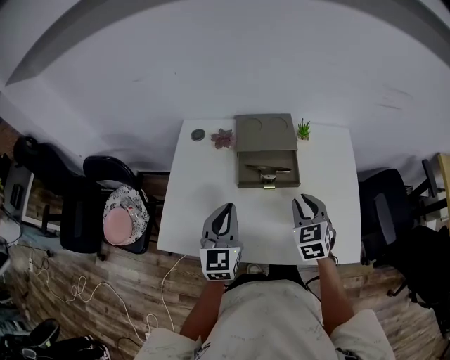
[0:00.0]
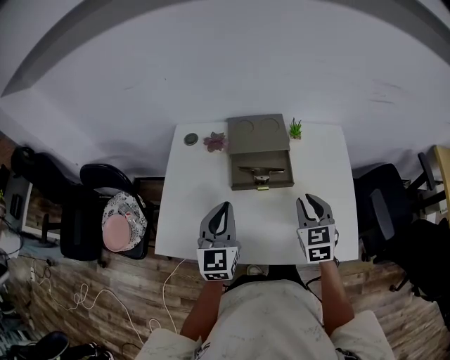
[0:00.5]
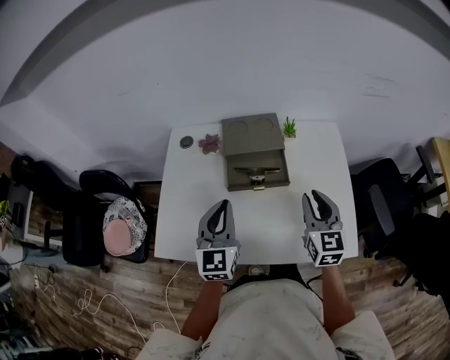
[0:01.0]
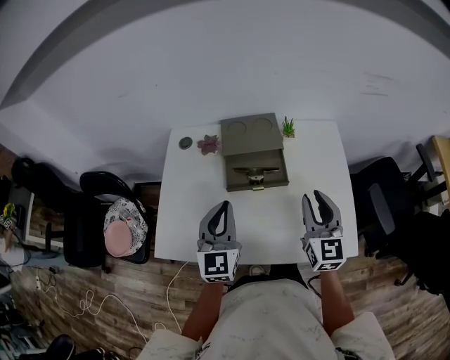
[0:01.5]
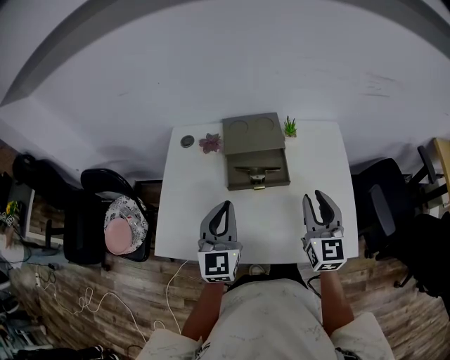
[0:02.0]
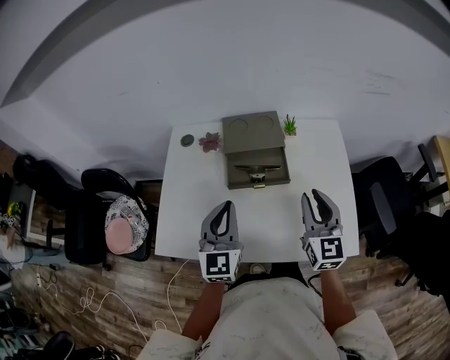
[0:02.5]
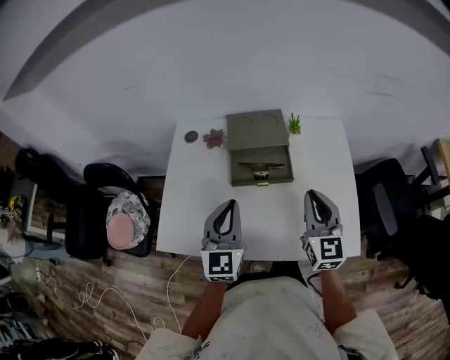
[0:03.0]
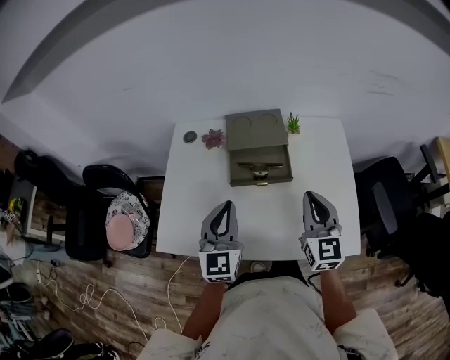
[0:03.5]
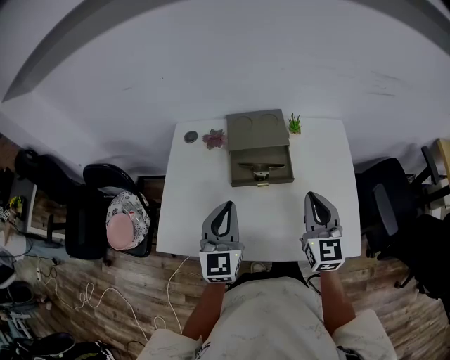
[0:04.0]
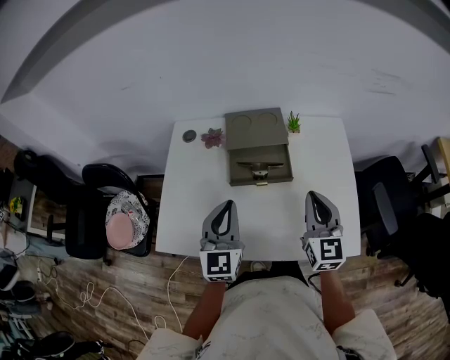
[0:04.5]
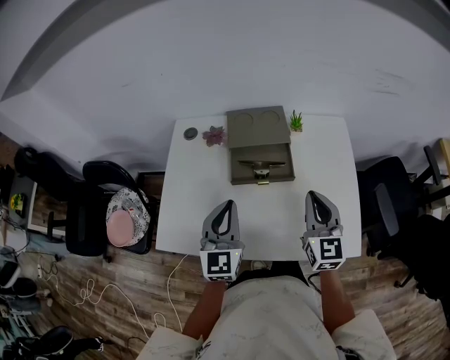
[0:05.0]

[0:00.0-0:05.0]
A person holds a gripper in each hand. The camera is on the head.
0:00.0 to 0:02.5: The left gripper shifts by about 5 cm; the right gripper is displaced upward and to the right by some 10 cm, and swivels some 30 degrees.
0:02.5 to 0:05.0: The right gripper closes.

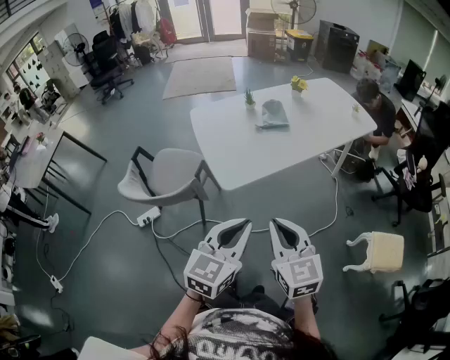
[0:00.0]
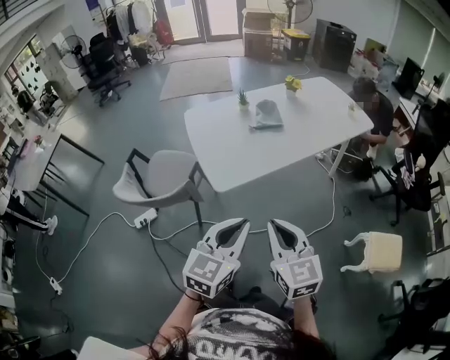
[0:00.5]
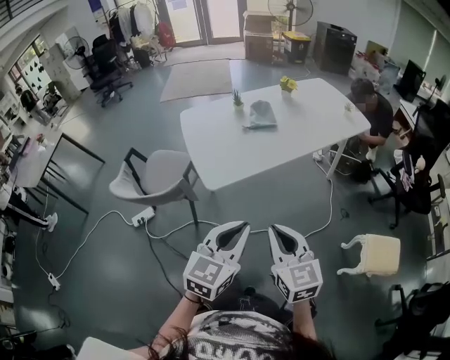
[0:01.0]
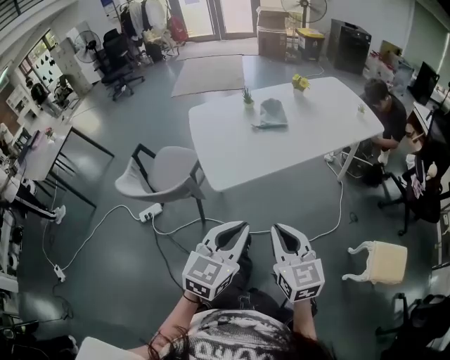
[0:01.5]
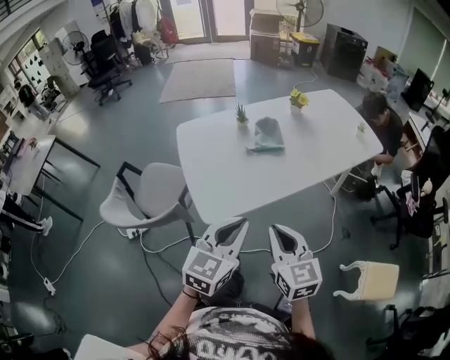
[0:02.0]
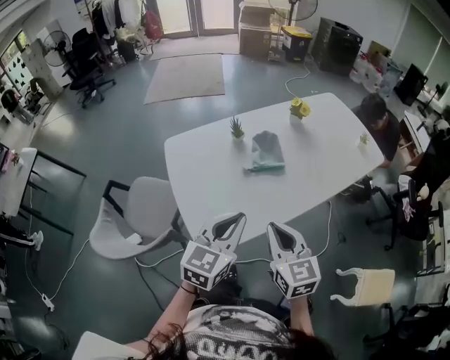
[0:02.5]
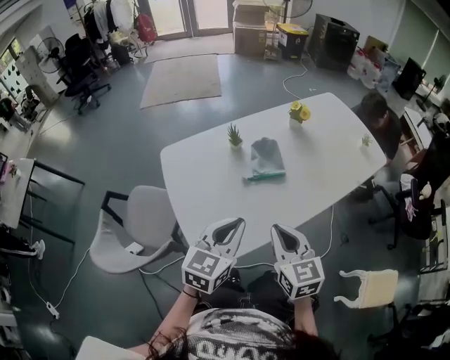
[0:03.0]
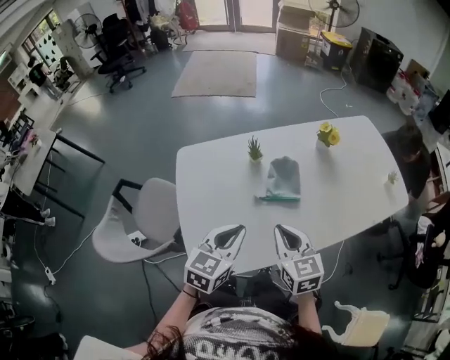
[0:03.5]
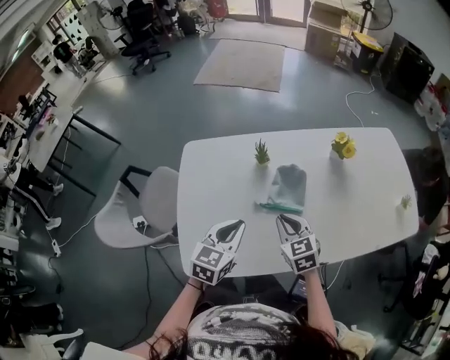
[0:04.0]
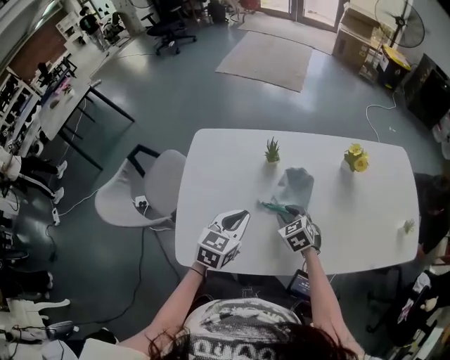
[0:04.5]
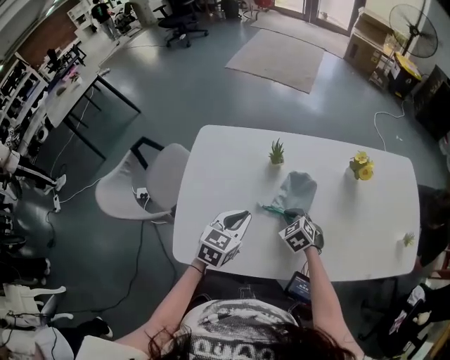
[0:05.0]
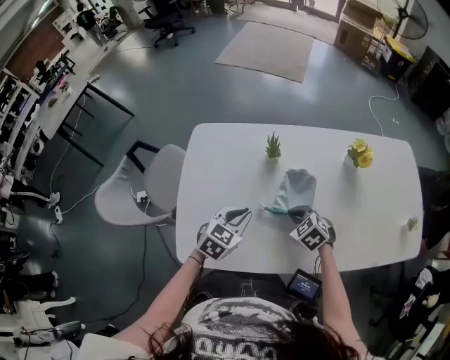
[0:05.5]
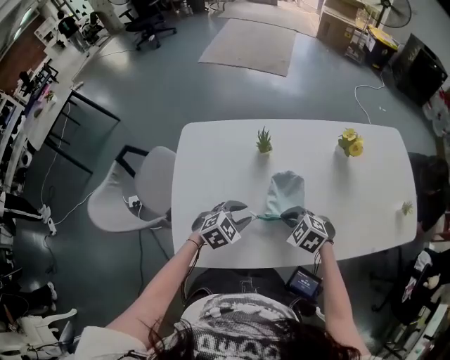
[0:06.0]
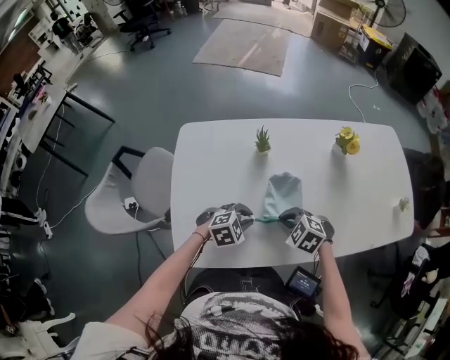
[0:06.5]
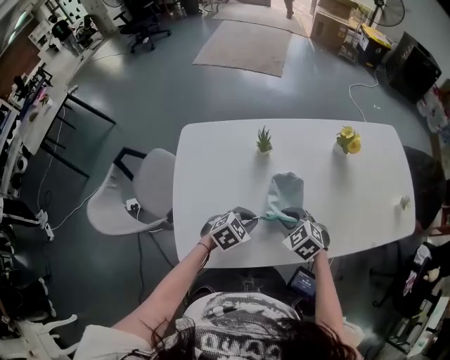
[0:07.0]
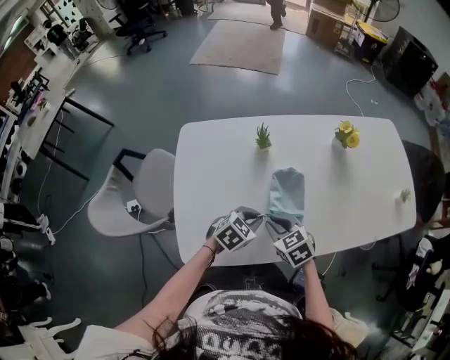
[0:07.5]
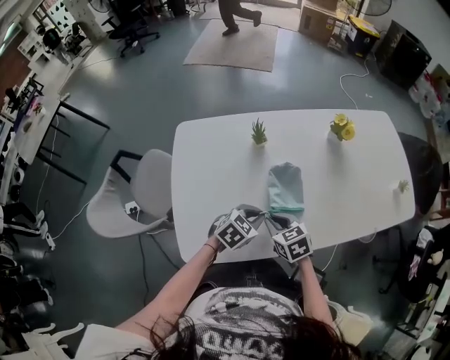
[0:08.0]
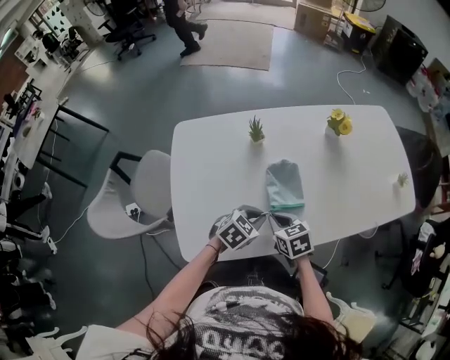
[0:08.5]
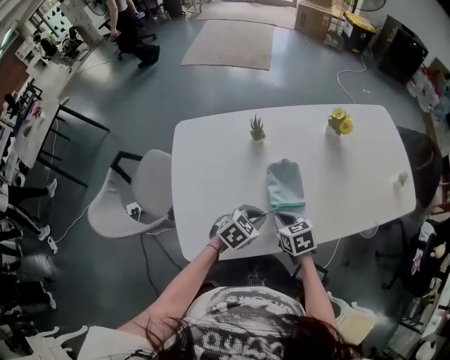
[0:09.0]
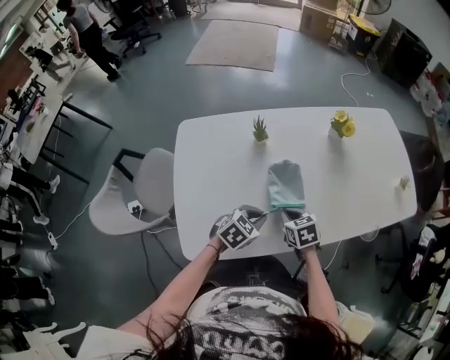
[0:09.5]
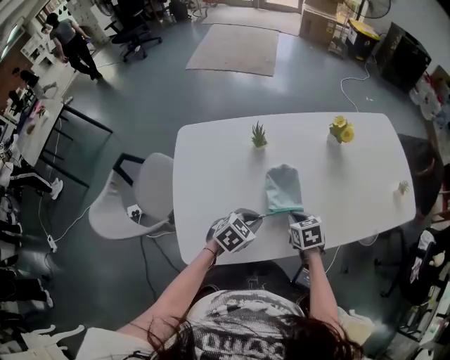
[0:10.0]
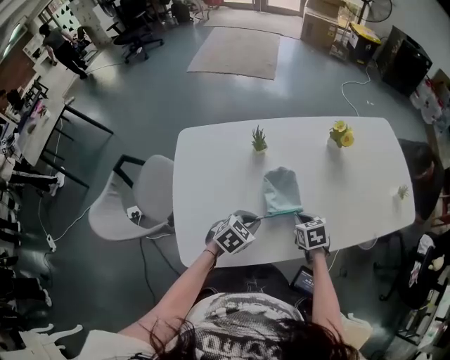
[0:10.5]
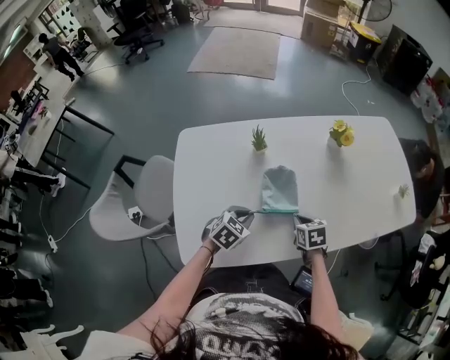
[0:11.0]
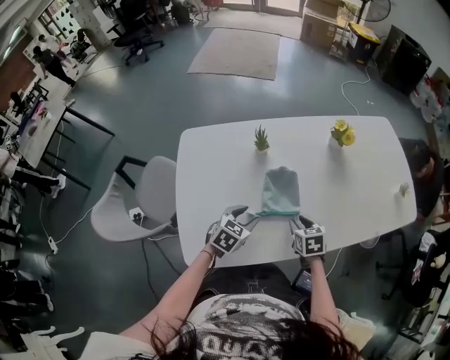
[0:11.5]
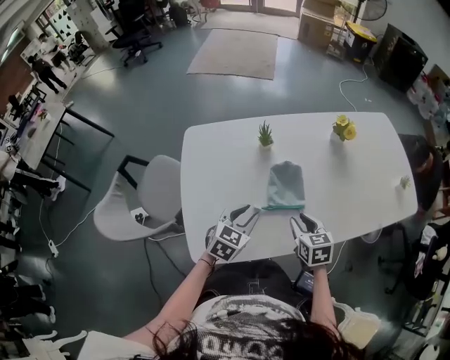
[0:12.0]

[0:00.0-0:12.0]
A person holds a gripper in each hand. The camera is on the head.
0:00.0 to 0:02.0: The two grippers go some 15 cm forward.
0:02.0 to 0:04.0: Both grippers travel together forward, some 35 cm. The left gripper changes its angle by some 20 degrees. Meanwhile the right gripper changes its angle by about 30 degrees.
0:04.0 to 0:06.0: The right gripper goes about 5 cm downward, swivels roughly 40 degrees, and opens, then closes again. The left gripper goes approximately 10 cm downward, changes its angle by roughly 40 degrees, and opens up.
0:06.0 to 0:08.0: The left gripper changes place by about 5 cm, and closes, while the right gripper shifts by roughly 5 cm, and rotates approximately 40 degrees.
0:08.0 to 0:10.0: The right gripper heads to the right, covering about 10 cm.
0:10.0 to 0:12.0: The left gripper heads to the left, covering roughly 5 cm, changes its angle by roughly 20 degrees, and opens its fingers; the right gripper heads upward, covering approximately 5 cm, and opens its fingers.

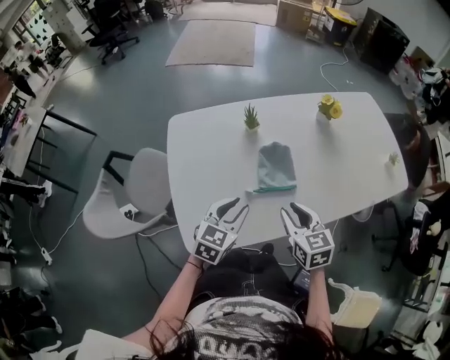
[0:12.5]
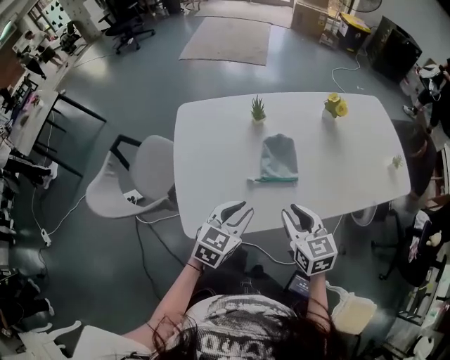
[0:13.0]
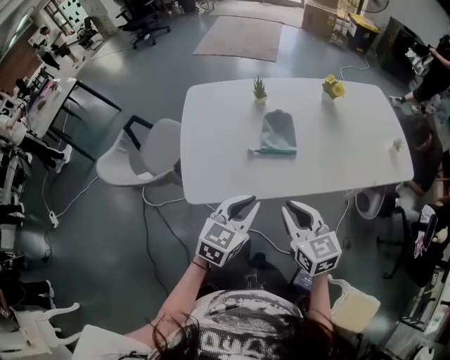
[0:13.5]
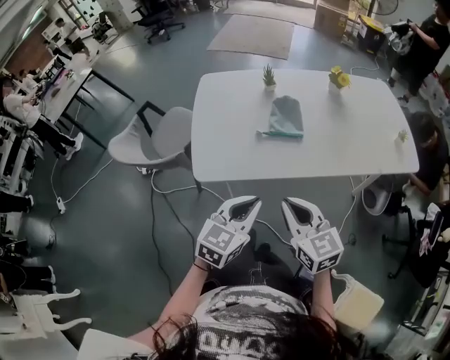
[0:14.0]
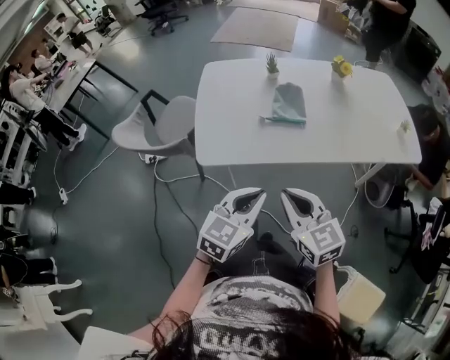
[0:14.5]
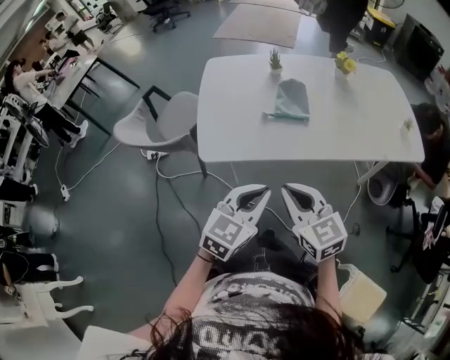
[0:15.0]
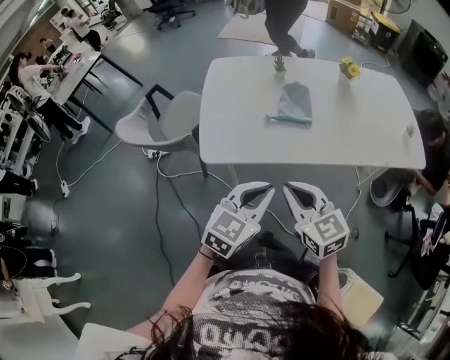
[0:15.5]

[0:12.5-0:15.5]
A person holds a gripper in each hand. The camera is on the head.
0:12.5 to 0:14.0: Both grippers travel together backward, some 25 cm. The left gripper closes its fingers; the right gripper rotates approximately 20 degrees, and closes.
0:14.0 to 0:15.5: The grippers make only small movements.

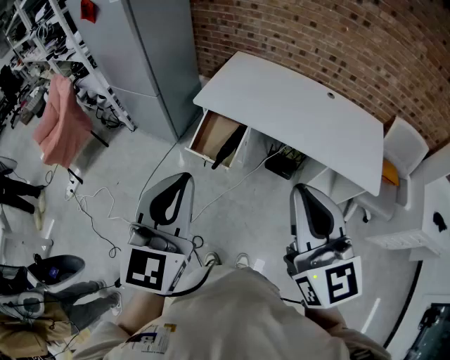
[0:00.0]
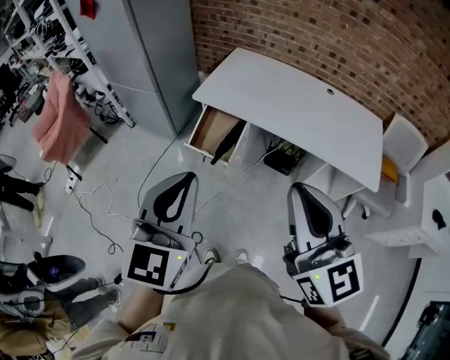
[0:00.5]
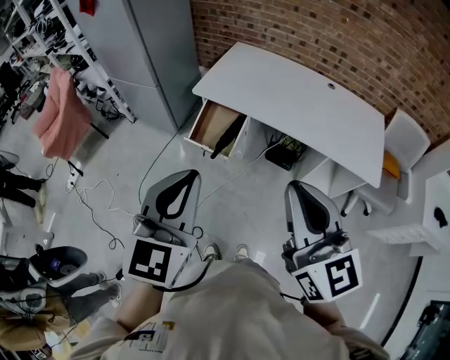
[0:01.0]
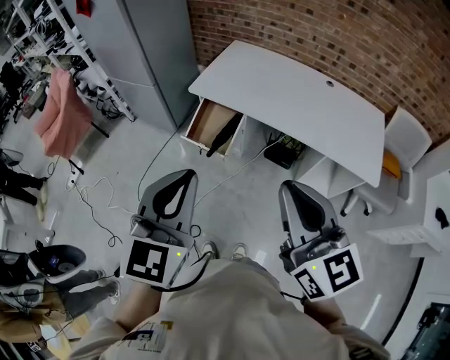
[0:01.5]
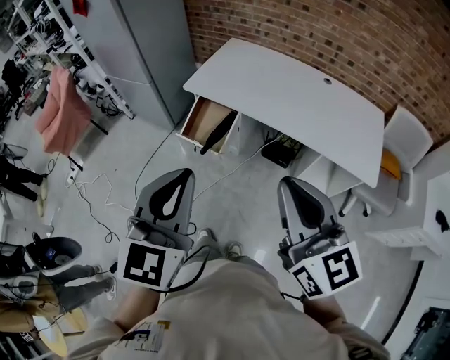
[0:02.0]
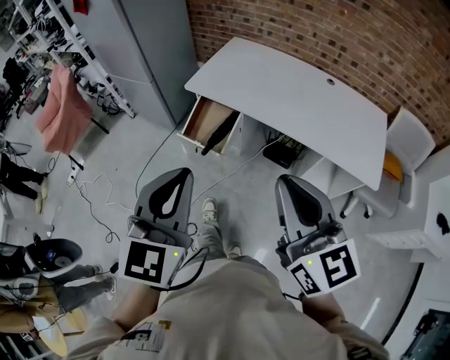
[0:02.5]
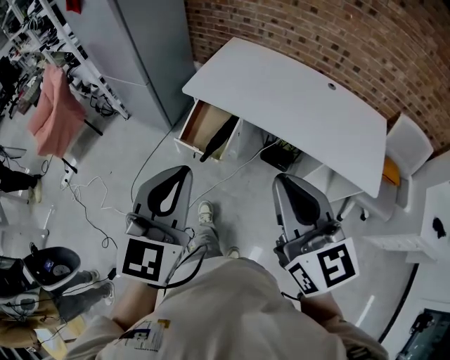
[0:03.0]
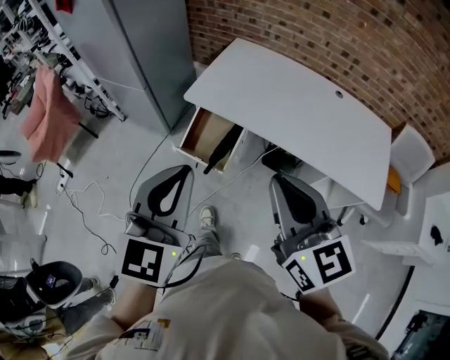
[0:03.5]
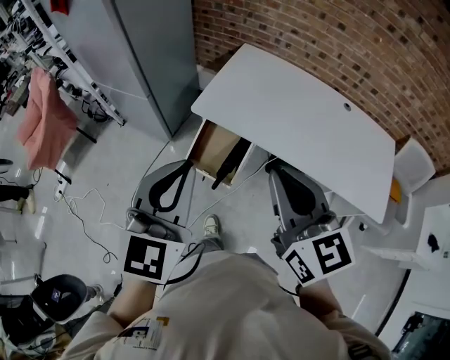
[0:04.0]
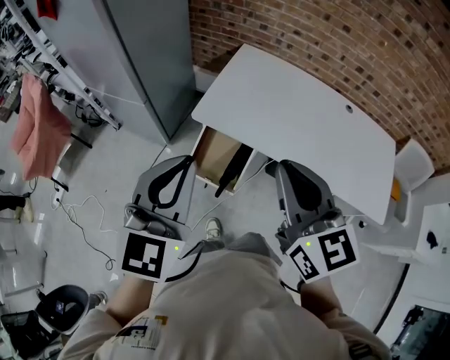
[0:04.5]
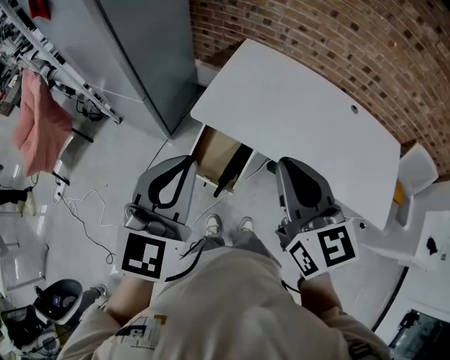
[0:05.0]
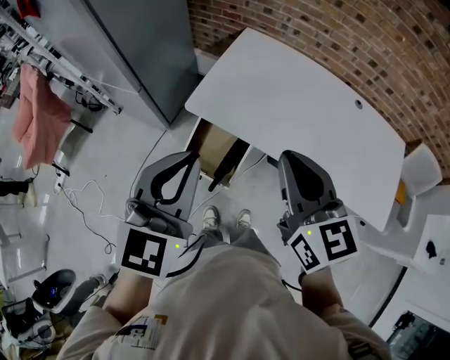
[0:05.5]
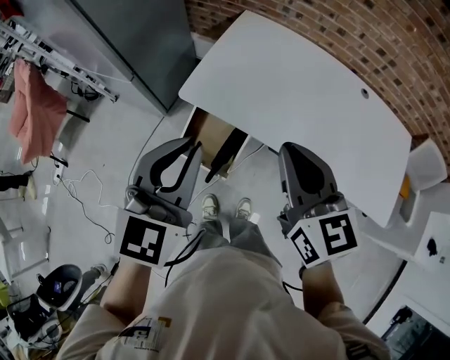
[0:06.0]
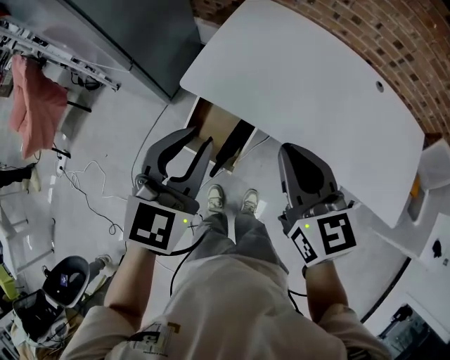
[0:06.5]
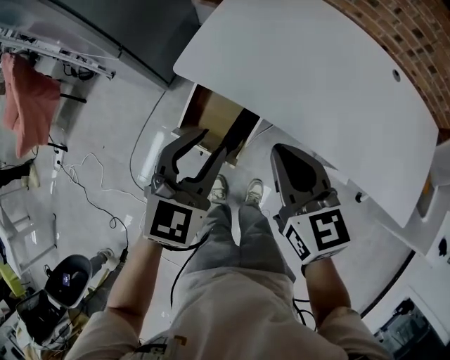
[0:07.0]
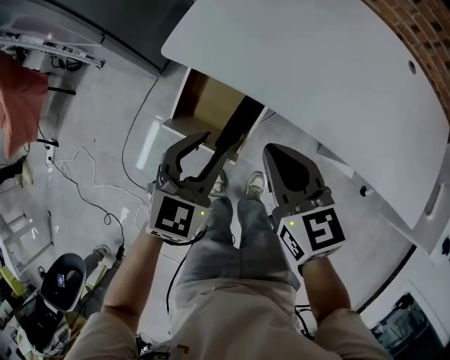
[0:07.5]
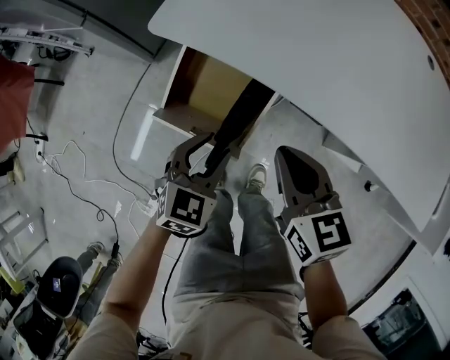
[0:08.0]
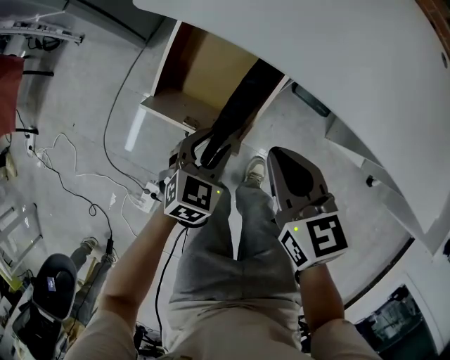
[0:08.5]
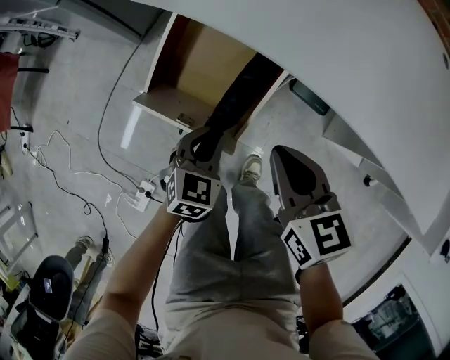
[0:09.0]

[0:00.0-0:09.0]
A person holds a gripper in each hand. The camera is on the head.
0:00.0 to 0:02.0: The grippers both shift to the right by some 10 cm.
0:02.0 to 0:04.5: The two grippers go approximately 40 cm forward and to the left.
0:04.5 to 0:07.0: The left gripper is displaced downward, forward and to the right by about 30 cm, rotates about 20 degrees, and opens up. Meanwhile the right gripper goes about 25 cm downward and forward.
0:07.0 to 0:09.0: The grippers both shift downward by roughly 35 cm.
